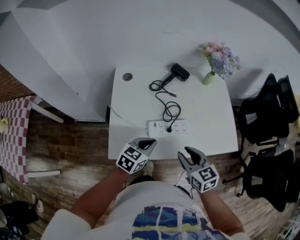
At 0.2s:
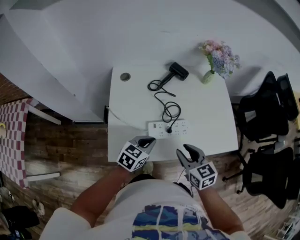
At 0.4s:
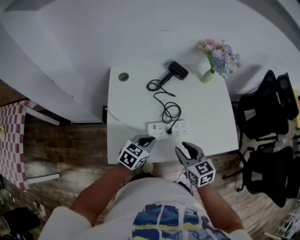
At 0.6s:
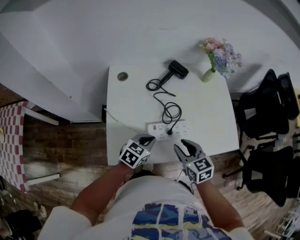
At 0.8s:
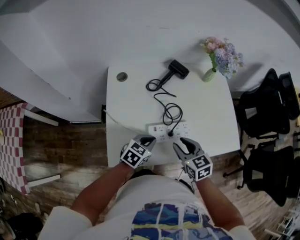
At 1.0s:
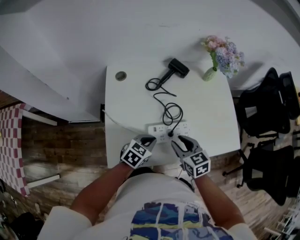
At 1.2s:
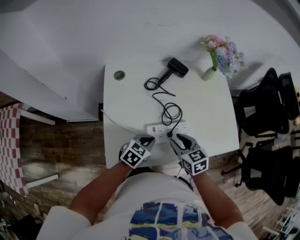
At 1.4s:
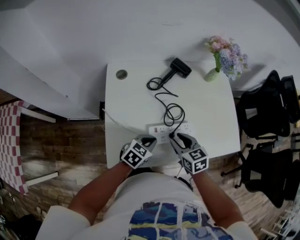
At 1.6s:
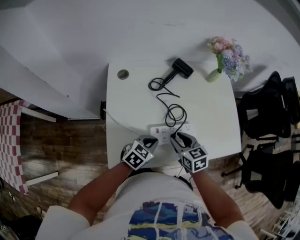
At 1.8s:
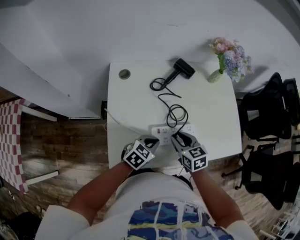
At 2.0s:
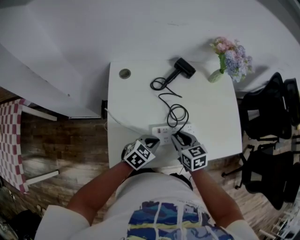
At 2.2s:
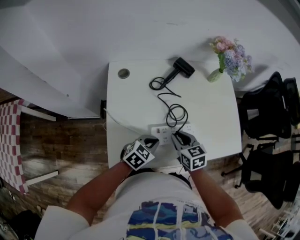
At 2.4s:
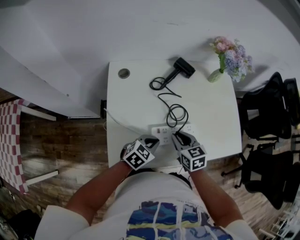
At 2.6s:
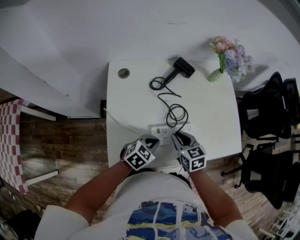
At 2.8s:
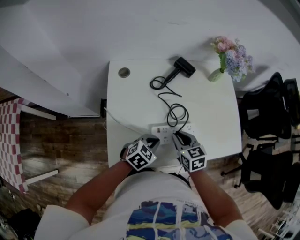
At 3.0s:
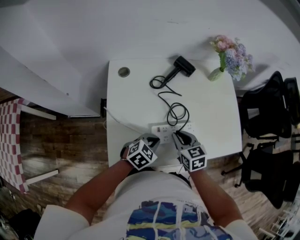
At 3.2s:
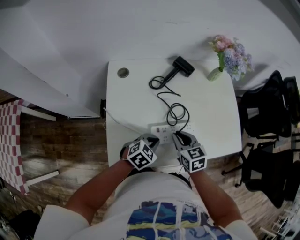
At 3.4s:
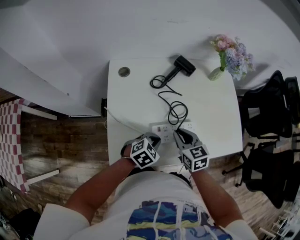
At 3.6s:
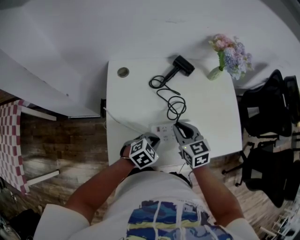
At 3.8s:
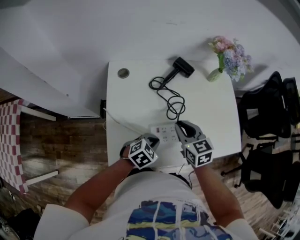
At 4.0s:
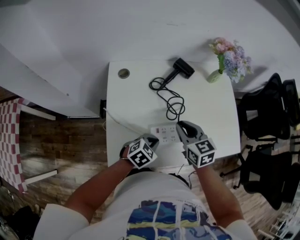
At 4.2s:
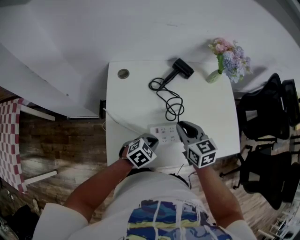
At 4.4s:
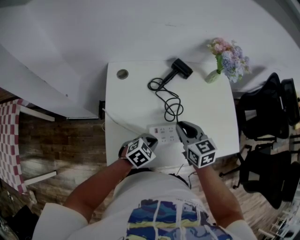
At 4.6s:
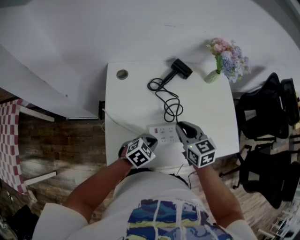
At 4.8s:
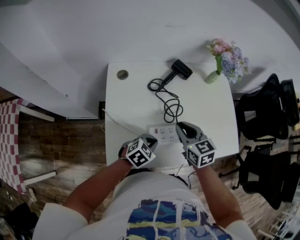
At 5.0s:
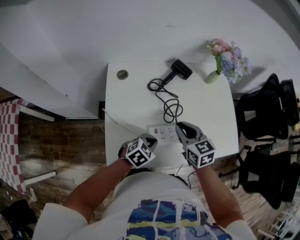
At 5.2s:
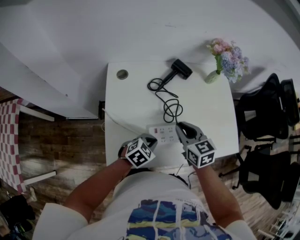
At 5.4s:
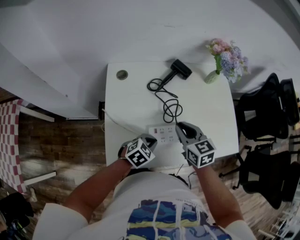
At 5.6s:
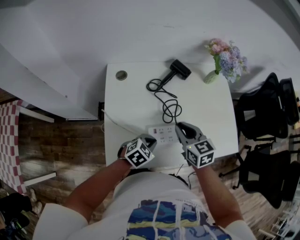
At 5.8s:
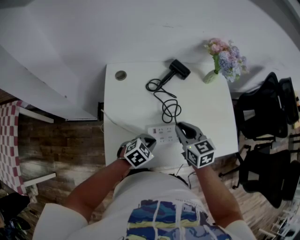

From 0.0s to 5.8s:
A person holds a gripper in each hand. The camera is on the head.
From 0.0s to 1.4s: The right gripper travels forward, downward and to the left by about 15 cm, while the left gripper moves downward and forward, roughly 10 cm.
From 1.4s to 2.8s: The right gripper closes its fingers.
From 2.8s to 4.4s: The right gripper heads upward, covering roughly 10 cm.
From 4.4s to 5.8s: Neither gripper changes place.

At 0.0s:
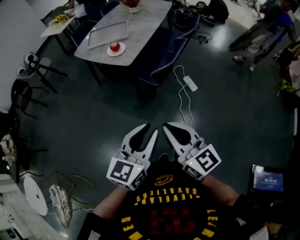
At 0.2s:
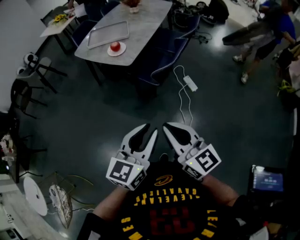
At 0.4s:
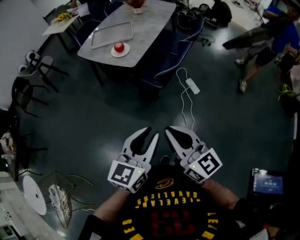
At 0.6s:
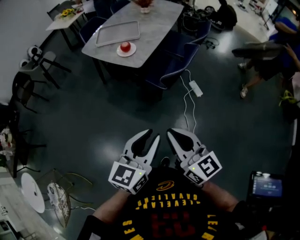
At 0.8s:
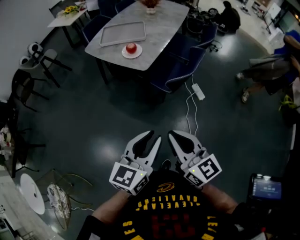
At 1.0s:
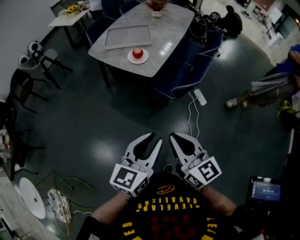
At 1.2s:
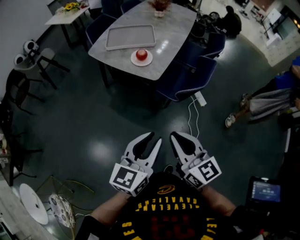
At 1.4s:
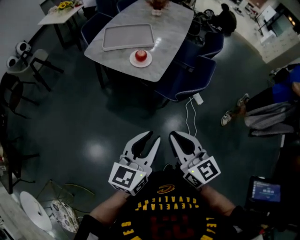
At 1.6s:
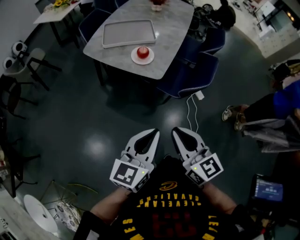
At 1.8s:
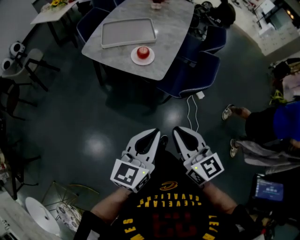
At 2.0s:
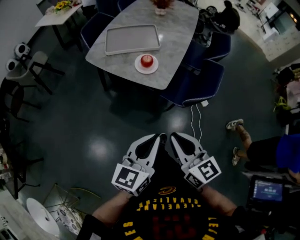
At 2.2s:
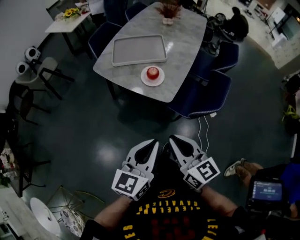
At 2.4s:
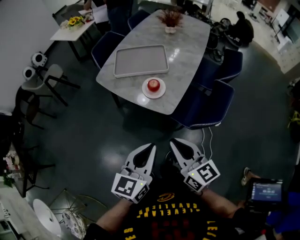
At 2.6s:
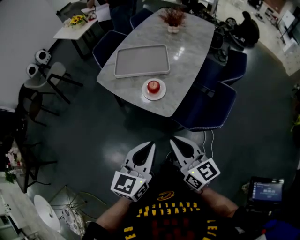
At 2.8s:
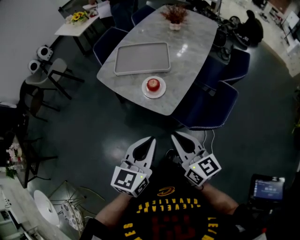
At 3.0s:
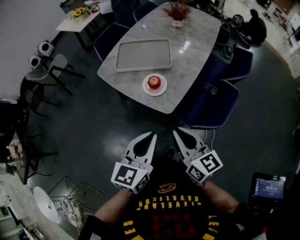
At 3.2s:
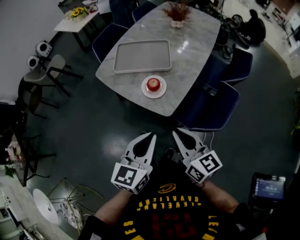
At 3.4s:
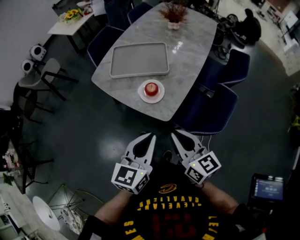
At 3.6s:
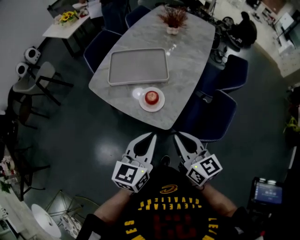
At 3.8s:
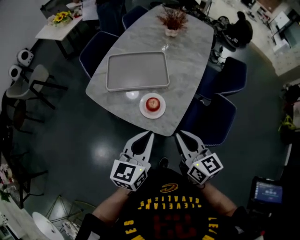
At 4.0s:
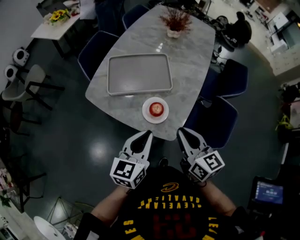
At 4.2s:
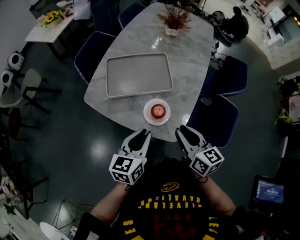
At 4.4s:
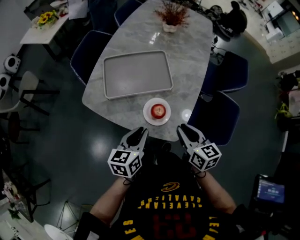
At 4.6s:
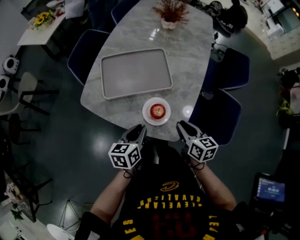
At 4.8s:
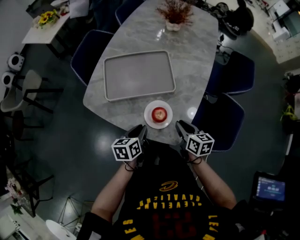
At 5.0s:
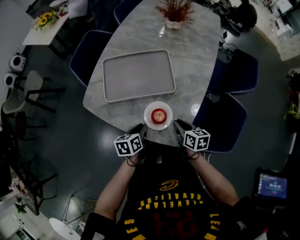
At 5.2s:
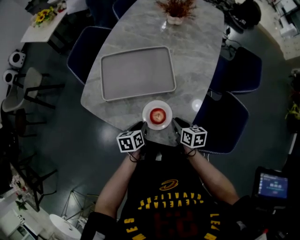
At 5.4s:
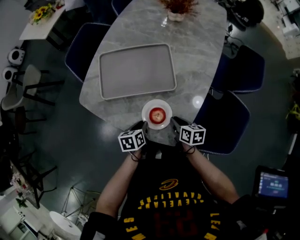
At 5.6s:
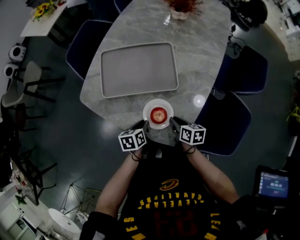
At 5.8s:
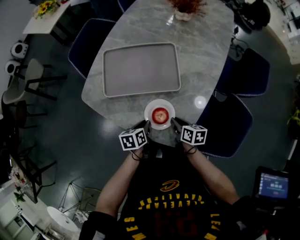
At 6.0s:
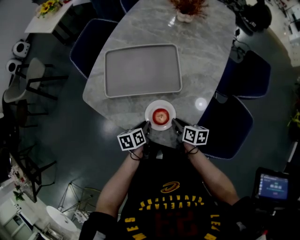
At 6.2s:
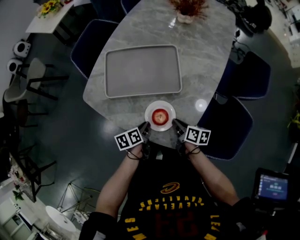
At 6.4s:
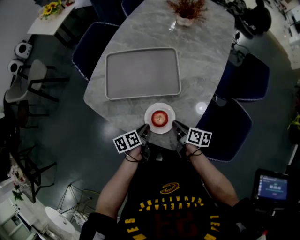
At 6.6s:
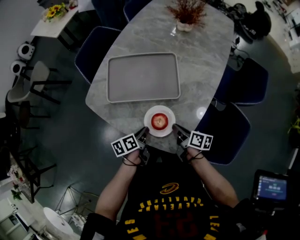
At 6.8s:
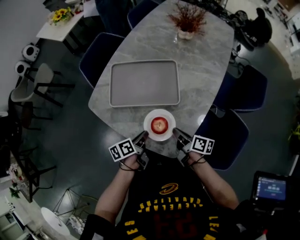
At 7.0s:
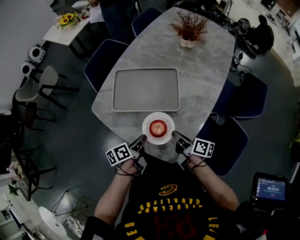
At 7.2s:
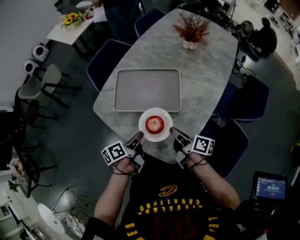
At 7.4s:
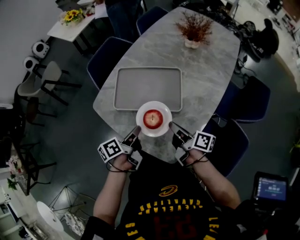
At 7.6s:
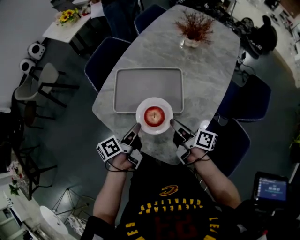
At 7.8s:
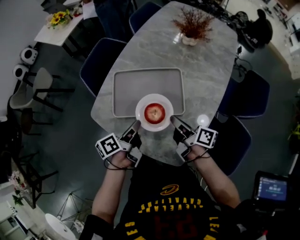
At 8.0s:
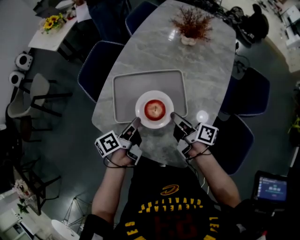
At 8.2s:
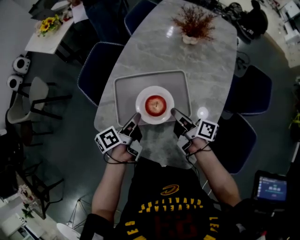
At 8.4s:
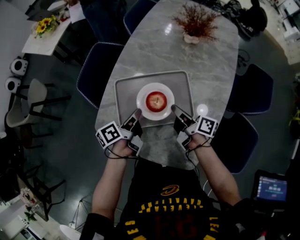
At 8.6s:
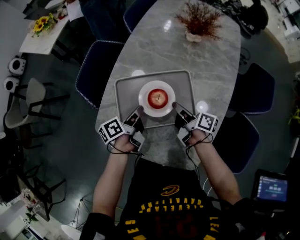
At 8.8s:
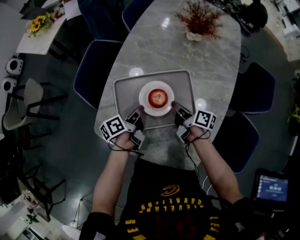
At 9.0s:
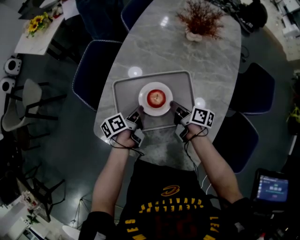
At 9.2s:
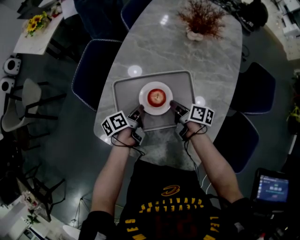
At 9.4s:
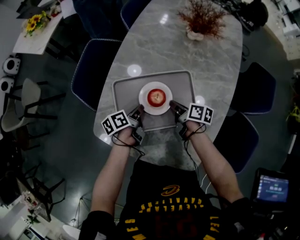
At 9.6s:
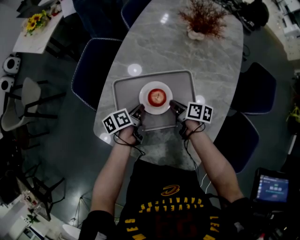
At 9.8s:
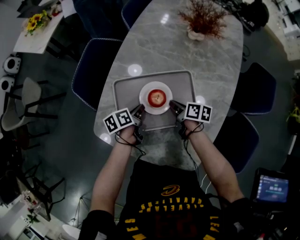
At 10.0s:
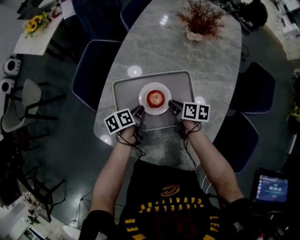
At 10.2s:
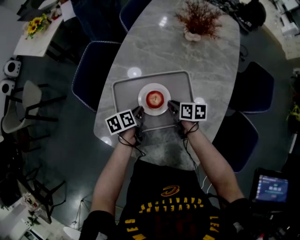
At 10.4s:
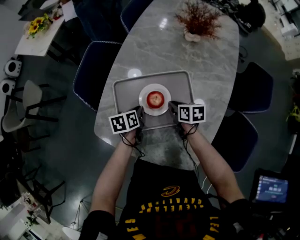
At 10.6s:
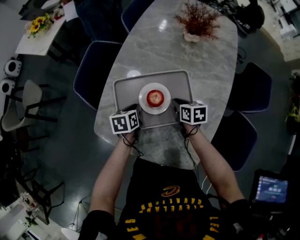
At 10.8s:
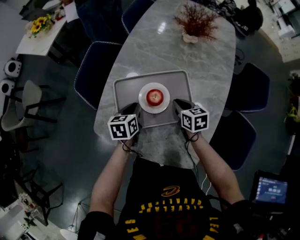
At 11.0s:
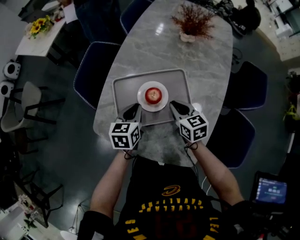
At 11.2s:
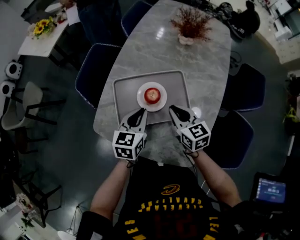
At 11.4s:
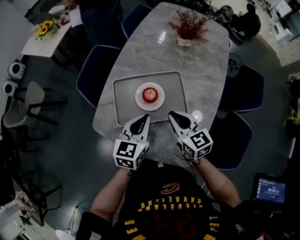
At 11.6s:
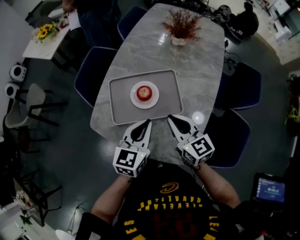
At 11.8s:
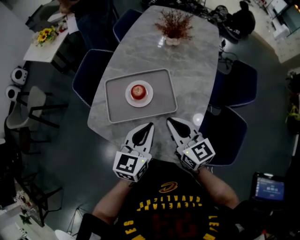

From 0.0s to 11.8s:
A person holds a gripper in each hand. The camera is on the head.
From 0.0s to 1.4s: Both grippers move to the left and forward, some 25 cm.
From 1.4s to 3.0s: Both grippers move forward, roughly 20 cm. The left gripper closes up.
From 3.0s to 4.4s: The left gripper is displaced forward, downward and to the left by roughly 30 cm, and changes its angle by about 20 degrees, while the right gripper moves forward and downward, about 25 cm, and turns by approximately 30 degrees.
From 4.4s to 6.0s: The grippers both shift downward by some 20 cm. The left gripper rotates approximately 30 degrees. Meanwhile the right gripper turns by roughly 30 degrees.
From 6.0s to 7.4s: The right gripper goes roughly 20 cm upward and forward, and tilts its fingers approximately 30 degrees upward, while the left gripper shifts some 15 cm upward, and turns by approximately 40 degrees.
From 7.4s to 8.8s: The right gripper moves forward and downward, approximately 20 cm, and rotates approximately 20 degrees; the left gripper goes roughly 20 cm forward.
From 8.8s to 10.4s: The left gripper heads downward, covering some 5 cm, and changes its angle by roughly 40 degrees. Meanwhile the right gripper turns by approximately 40 degrees.
From 10.4s to 11.8s: The left gripper is displaced upward, backward and to the right by about 30 cm, and tips its fingers upward by some 30 degrees; the right gripper moves upward and backward, approximately 30 cm, and tilts its fingers roughly 40 degrees upward.

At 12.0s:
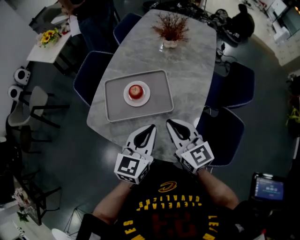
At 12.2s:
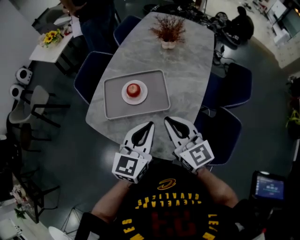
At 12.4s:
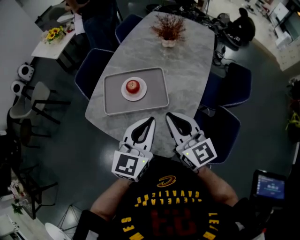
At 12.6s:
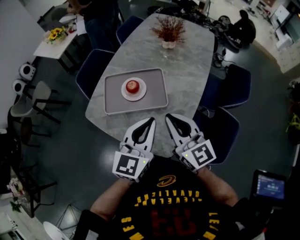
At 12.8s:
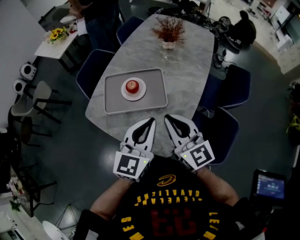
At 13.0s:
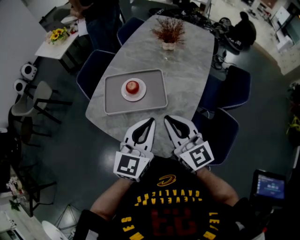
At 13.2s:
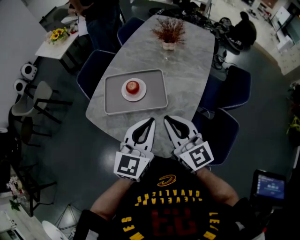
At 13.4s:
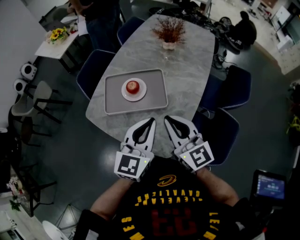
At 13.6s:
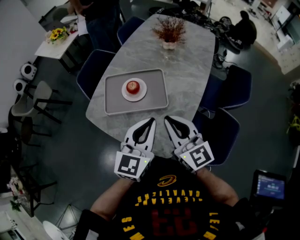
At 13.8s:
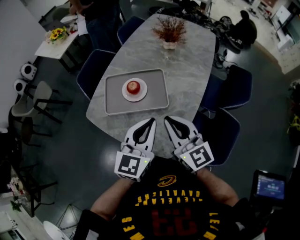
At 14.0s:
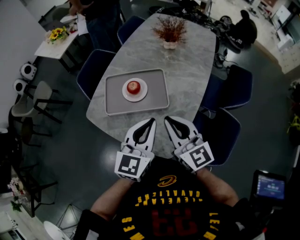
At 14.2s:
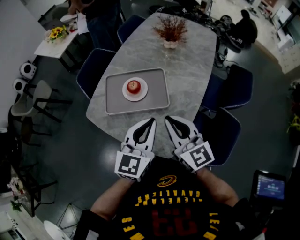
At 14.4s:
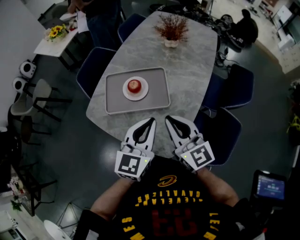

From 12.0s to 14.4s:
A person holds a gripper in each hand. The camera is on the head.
From 12.0s to 13.2s: The right gripper goes about 5 cm upward. The left gripper ends up approximately 5 cm from where it was.
From 13.2s to 14.4s: The grippers make only small movements.

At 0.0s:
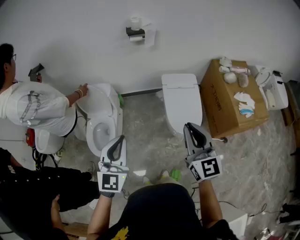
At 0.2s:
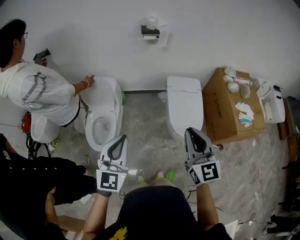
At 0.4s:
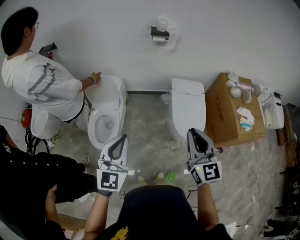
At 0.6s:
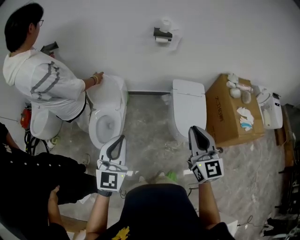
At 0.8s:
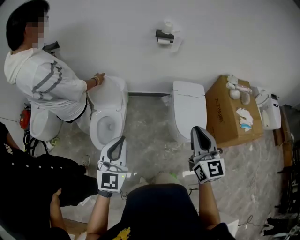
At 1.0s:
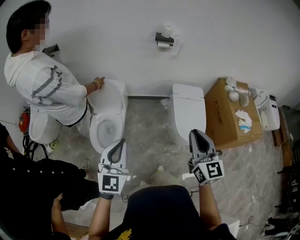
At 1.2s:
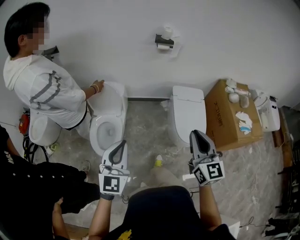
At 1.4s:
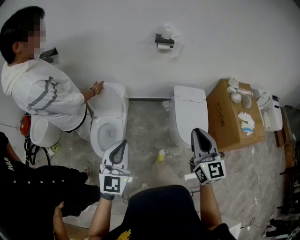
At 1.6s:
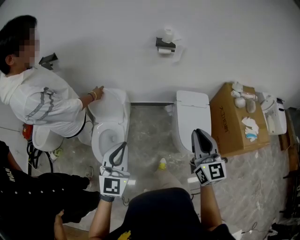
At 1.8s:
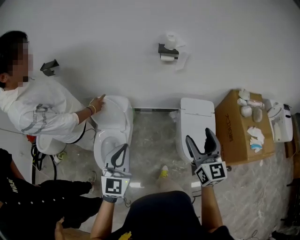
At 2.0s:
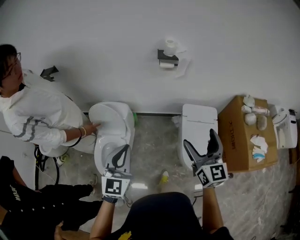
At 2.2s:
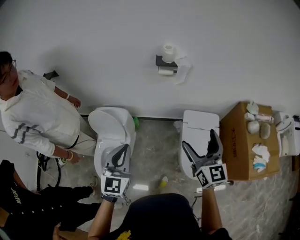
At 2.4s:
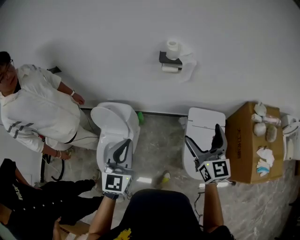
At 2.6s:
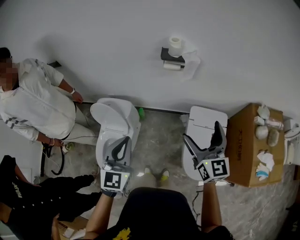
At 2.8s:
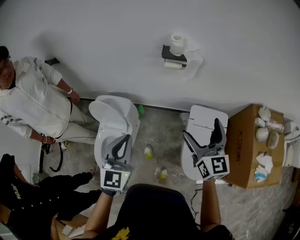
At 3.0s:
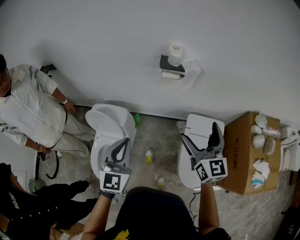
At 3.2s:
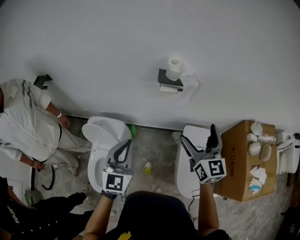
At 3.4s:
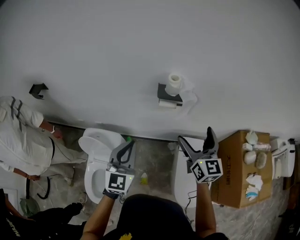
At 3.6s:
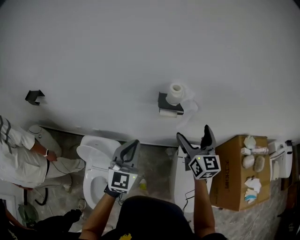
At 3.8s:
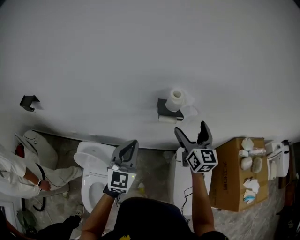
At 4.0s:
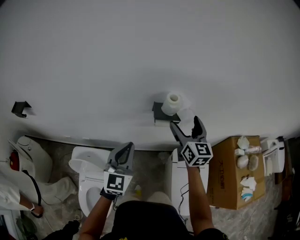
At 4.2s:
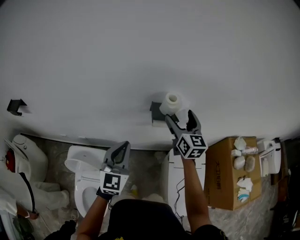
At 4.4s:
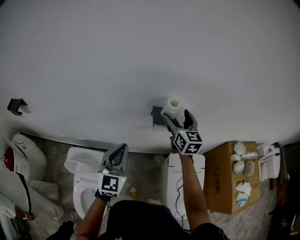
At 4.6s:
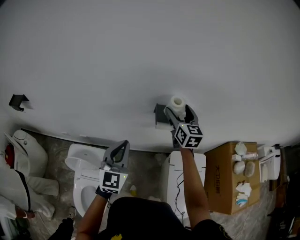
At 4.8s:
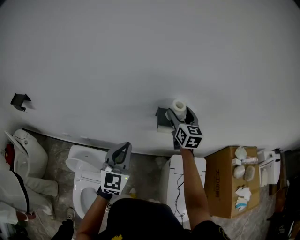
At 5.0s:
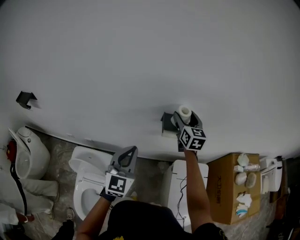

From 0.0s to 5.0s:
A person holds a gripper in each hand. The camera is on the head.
From 0.0s to 1.6s: The right gripper moves to the left and forward, some 15 cm; the left gripper heads to the left, covering about 15 cm.
From 1.6s to 3.4s: The pair of grippers is taken forward, approximately 50 cm. The right gripper opens up.
From 3.4s to 5.0s: The left gripper travels forward and to the left by about 15 cm, while the right gripper travels forward by some 25 cm, and closes up.
